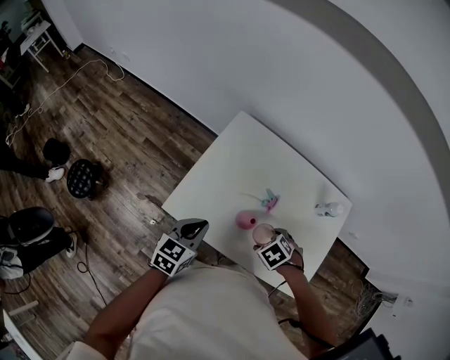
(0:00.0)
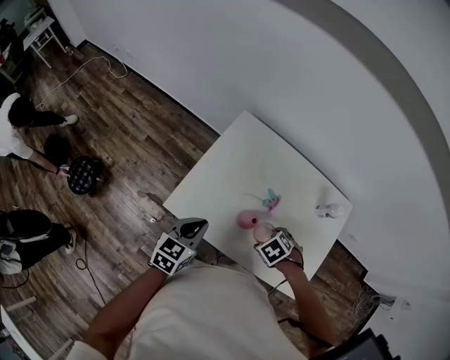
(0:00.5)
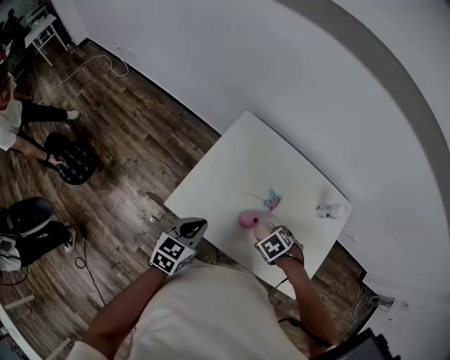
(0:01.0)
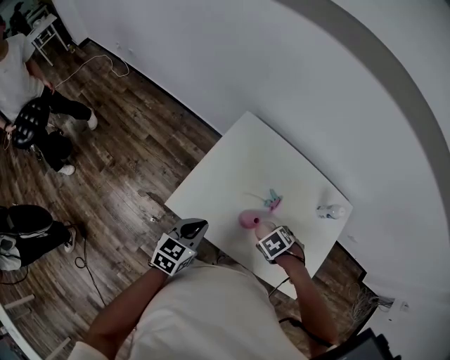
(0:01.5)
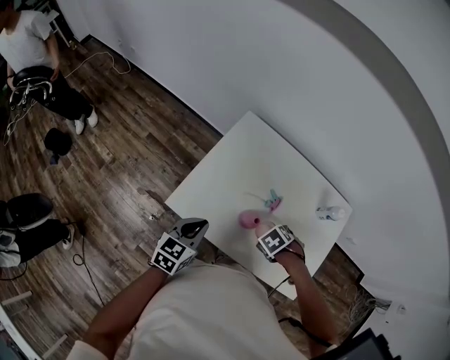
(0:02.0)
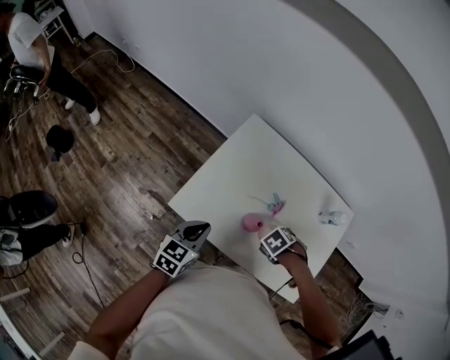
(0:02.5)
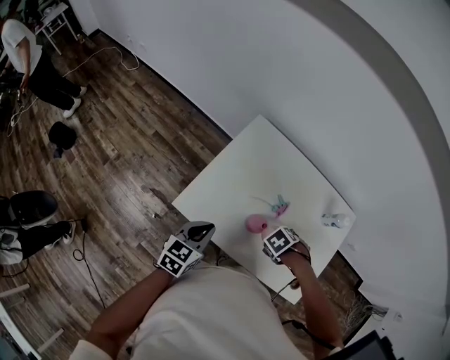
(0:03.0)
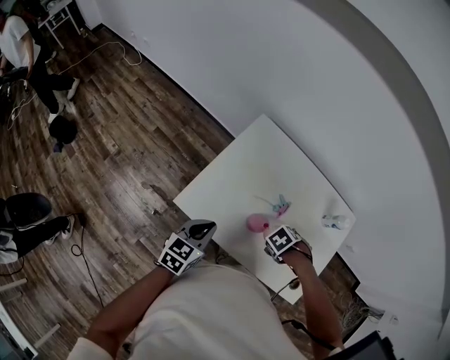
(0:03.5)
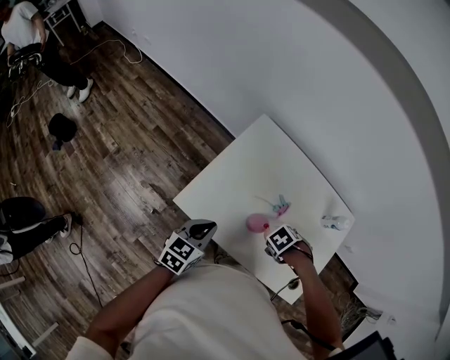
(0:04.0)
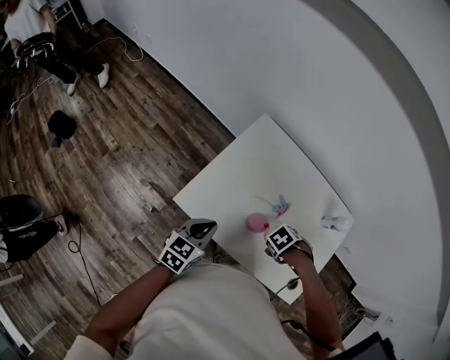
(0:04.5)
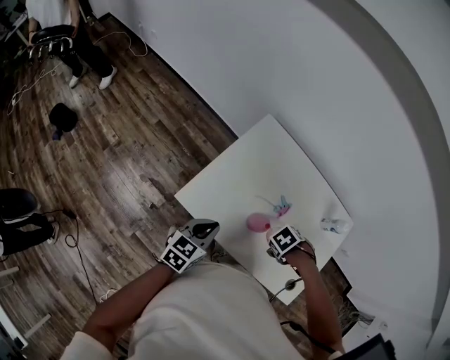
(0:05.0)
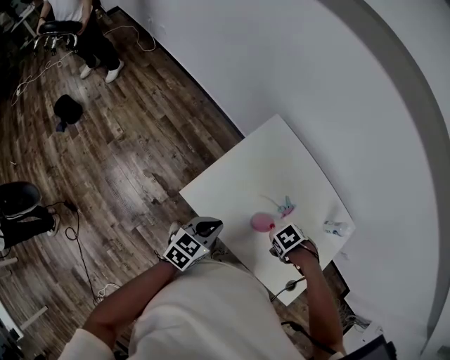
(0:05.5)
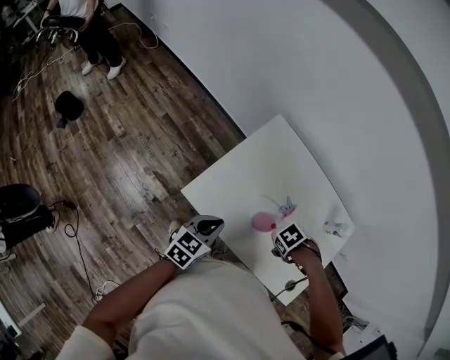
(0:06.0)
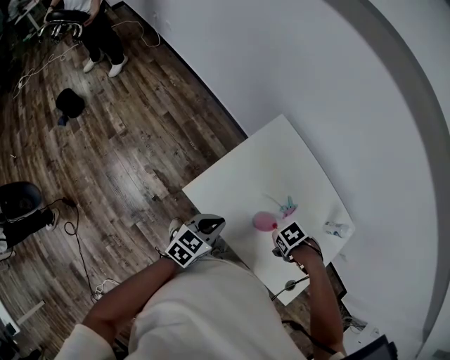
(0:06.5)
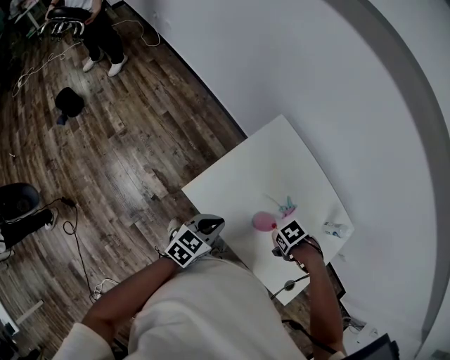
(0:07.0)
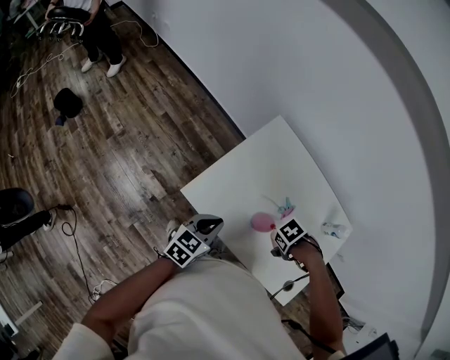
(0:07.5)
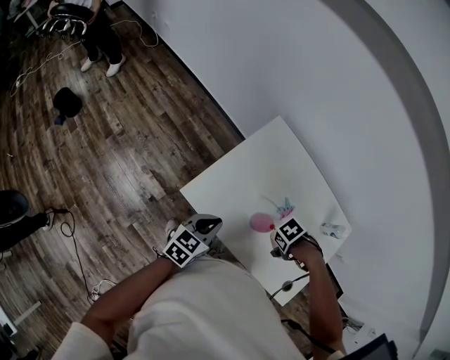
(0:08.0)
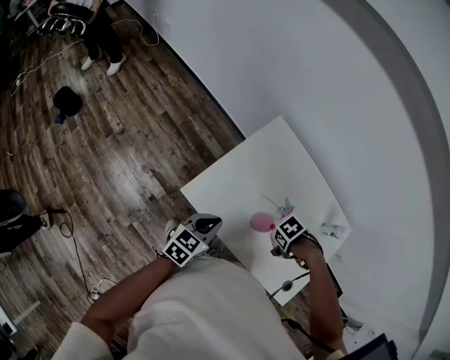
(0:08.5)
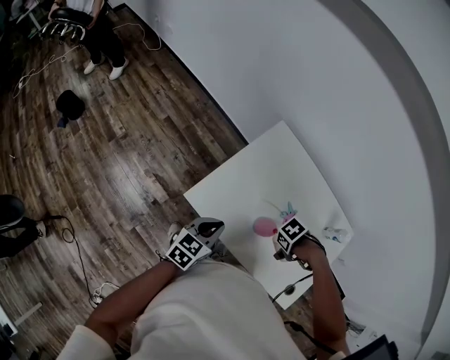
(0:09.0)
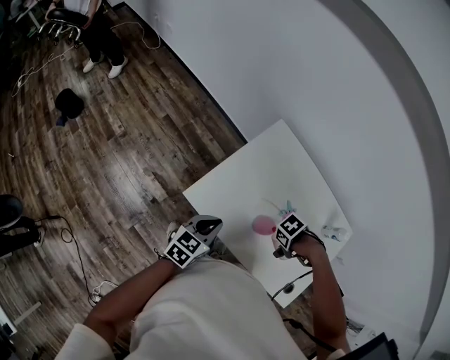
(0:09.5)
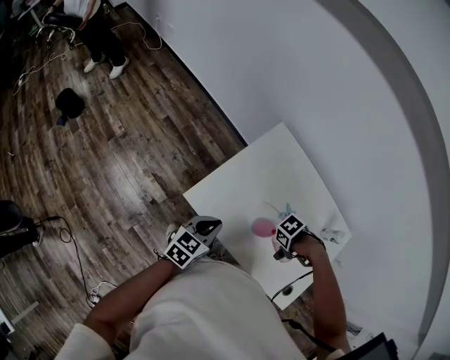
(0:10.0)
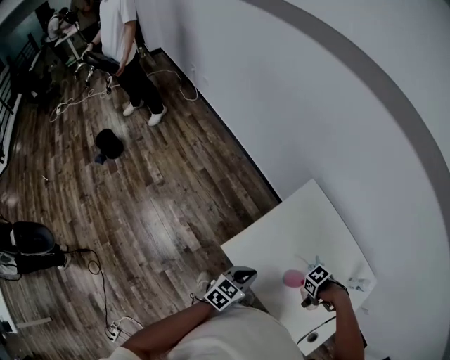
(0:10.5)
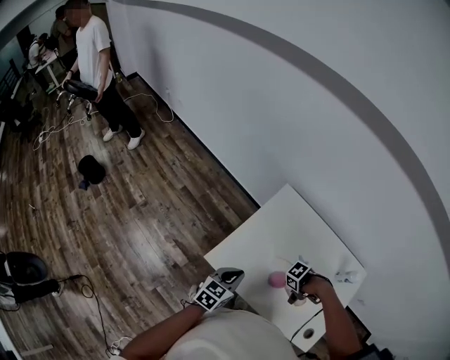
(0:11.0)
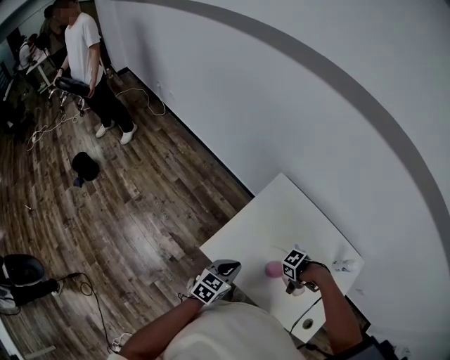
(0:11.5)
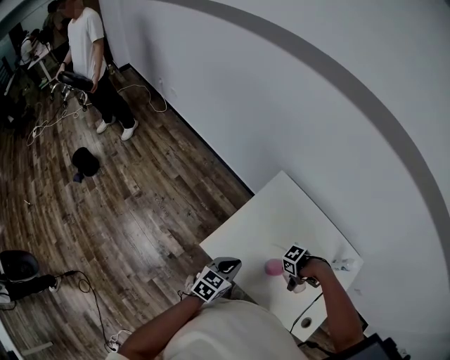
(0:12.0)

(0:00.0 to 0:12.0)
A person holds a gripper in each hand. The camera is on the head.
0:00.0 - 0:02.0: The grippers move only a little.
0:02.0 - 0:06.0: The grippers move only a little.
0:06.0 - 0:10.0: The grippers stay close to where they were, moving slightly.
0:10.0 - 0:12.0: There are only small adjustments of the grippers.

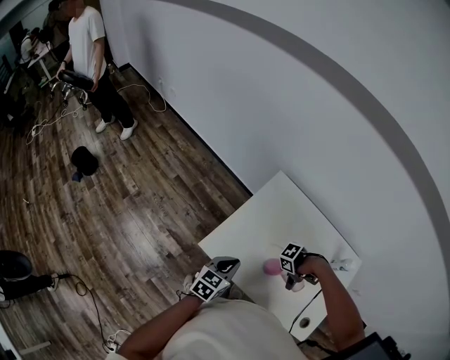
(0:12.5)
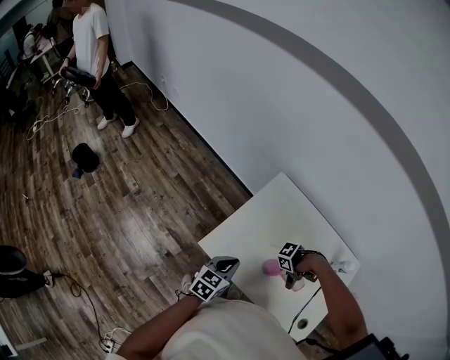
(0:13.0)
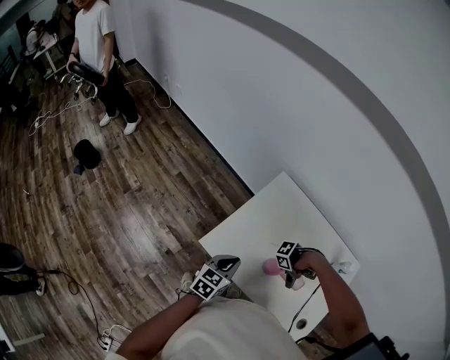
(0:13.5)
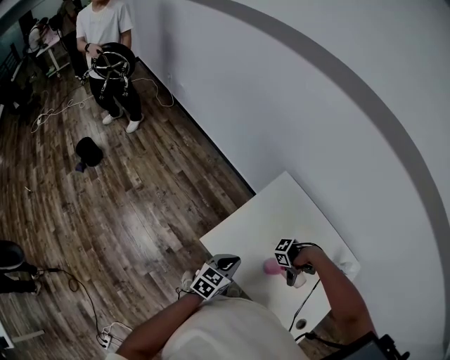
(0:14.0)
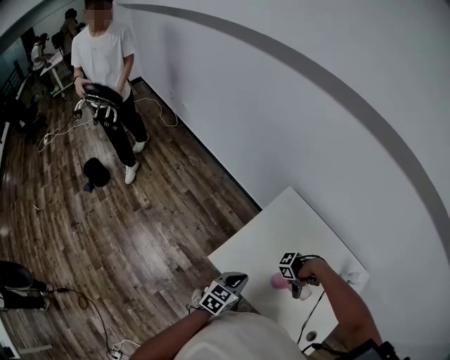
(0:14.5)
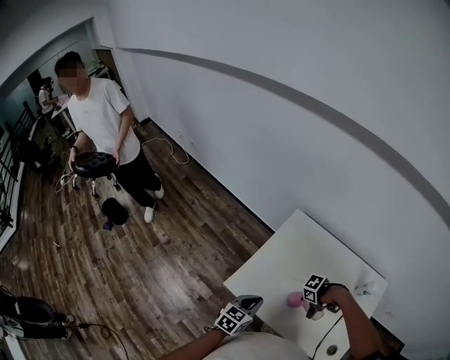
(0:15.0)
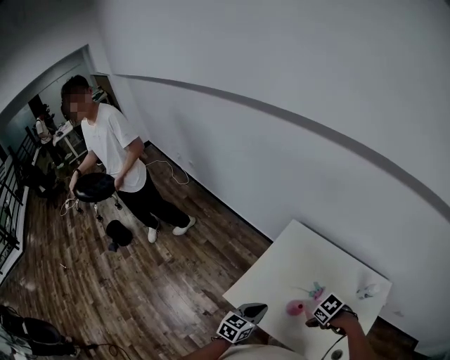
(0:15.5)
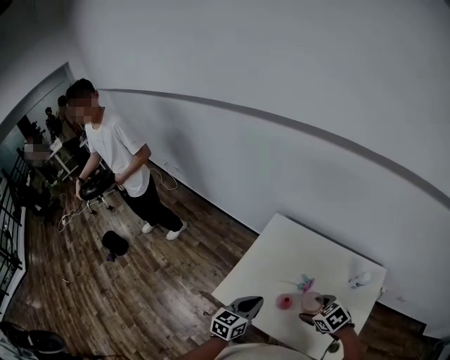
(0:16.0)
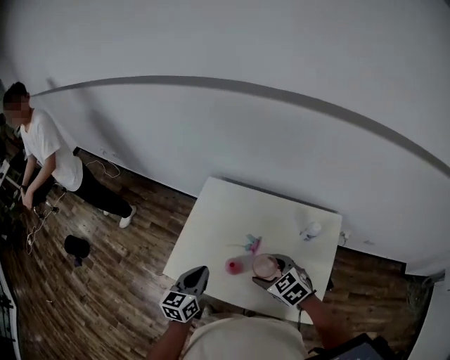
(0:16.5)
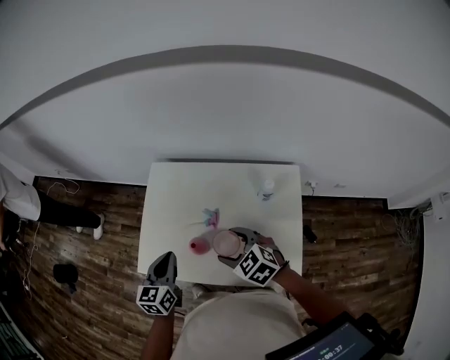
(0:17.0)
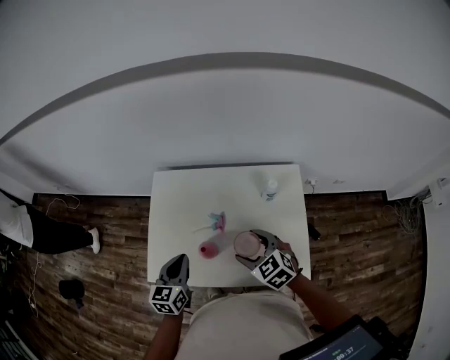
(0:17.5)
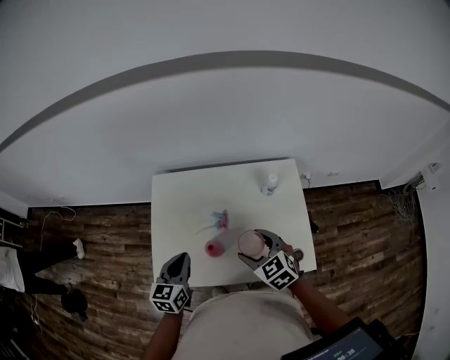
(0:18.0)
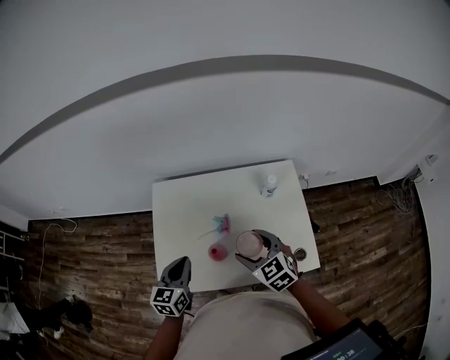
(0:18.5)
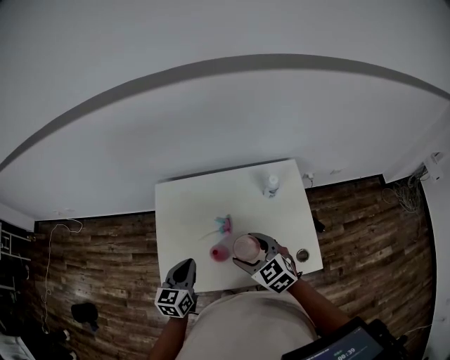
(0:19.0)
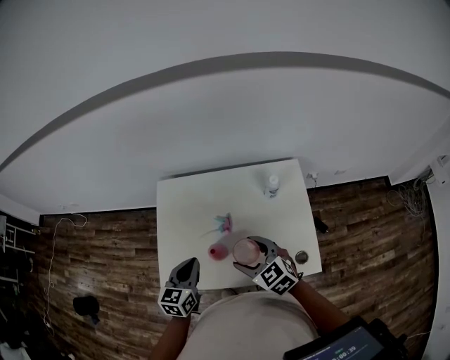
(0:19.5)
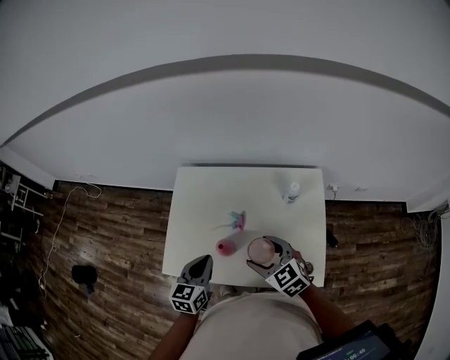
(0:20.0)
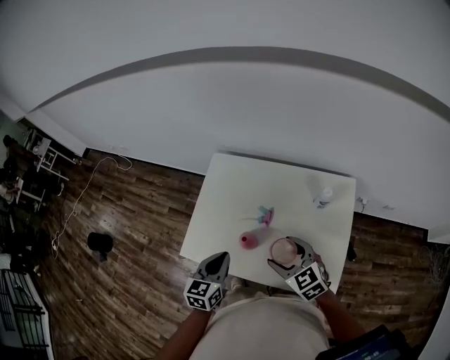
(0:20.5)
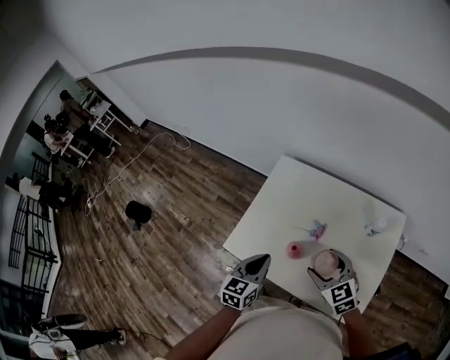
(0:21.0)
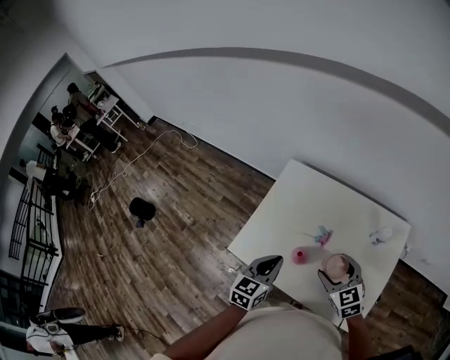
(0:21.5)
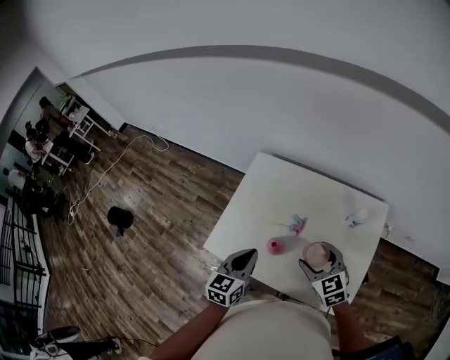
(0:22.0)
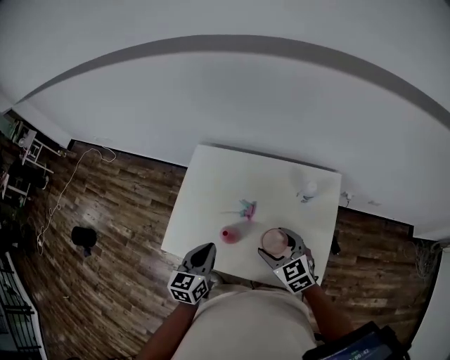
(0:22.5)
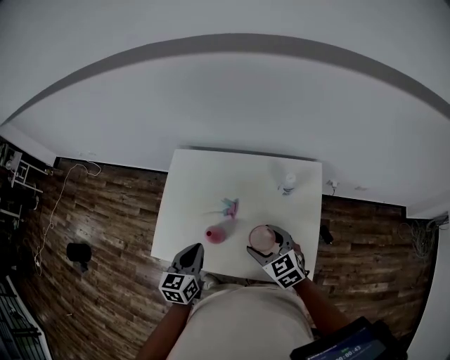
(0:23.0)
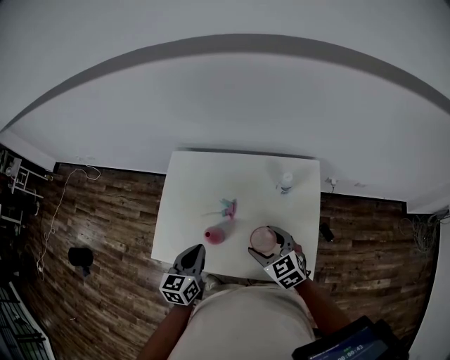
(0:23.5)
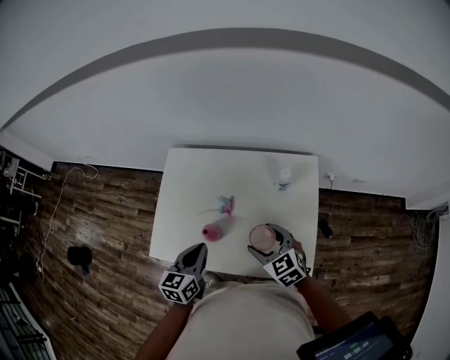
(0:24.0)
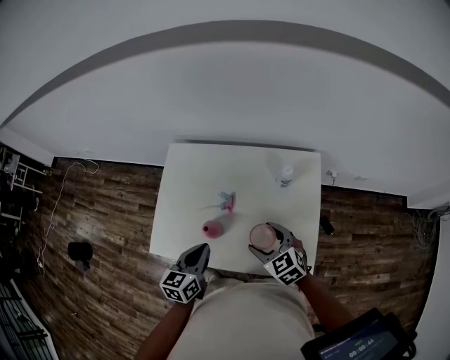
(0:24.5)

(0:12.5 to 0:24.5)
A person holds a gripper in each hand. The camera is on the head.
0:12.5 - 0:14.5: The grippers make only small movements.
0:14.5 - 0:16.5: The right gripper goes approximately 10 cm upward, and changes its angle by about 100 degrees, while the left gripper shifts by approximately 15 cm.
0:16.5 - 0:18.5: The right gripper turns by about 30 degrees. Meanwhile the left gripper turns by some 20 degrees.
0:18.5 - 0:20.5: The right gripper rotates about 20 degrees. Meanwhile the left gripper moves backward, approximately 5 cm.
0:20.5 - 0:22.5: The grippers make only small movements.
0:22.5 - 0:24.5: The right gripper ends up roughly 5 cm from where it was, while the left gripper ends up approximately 5 cm from where it was.

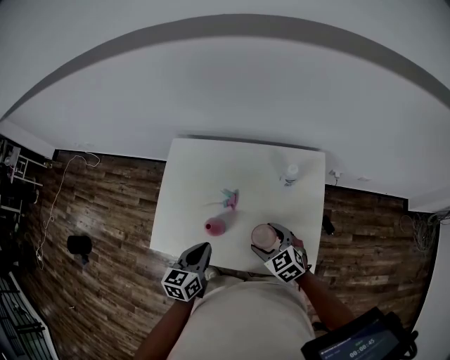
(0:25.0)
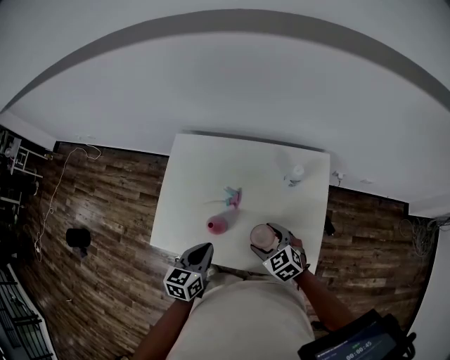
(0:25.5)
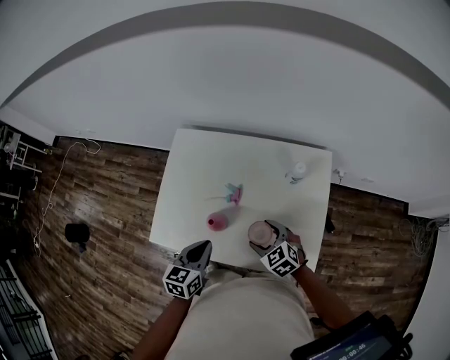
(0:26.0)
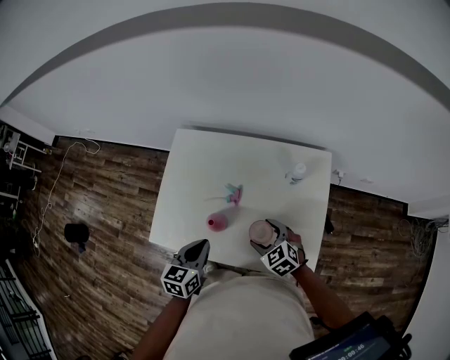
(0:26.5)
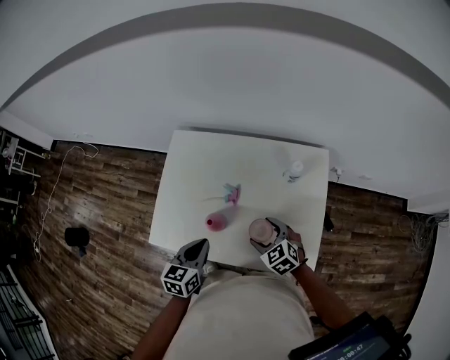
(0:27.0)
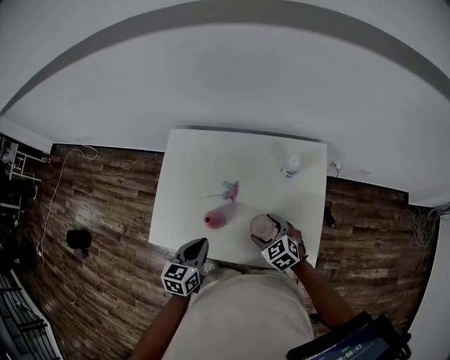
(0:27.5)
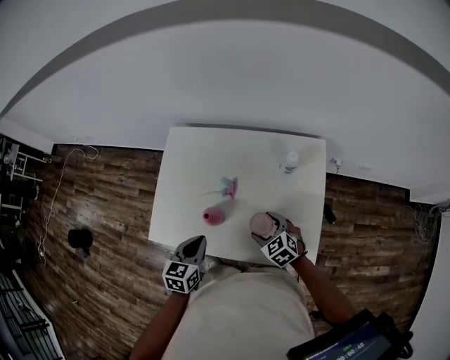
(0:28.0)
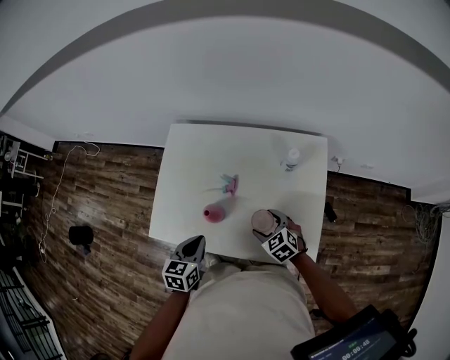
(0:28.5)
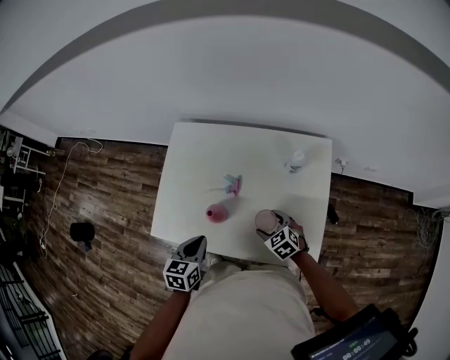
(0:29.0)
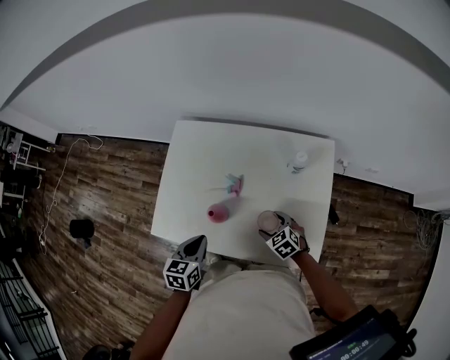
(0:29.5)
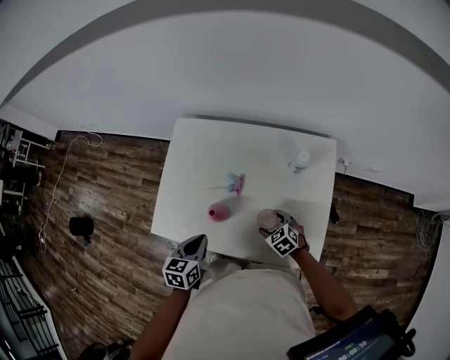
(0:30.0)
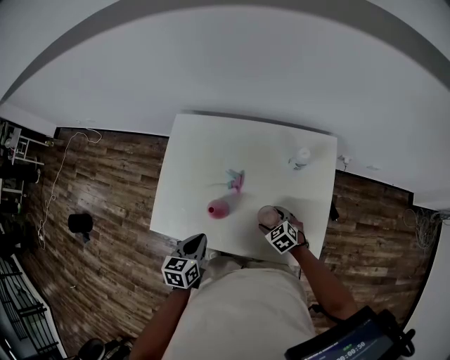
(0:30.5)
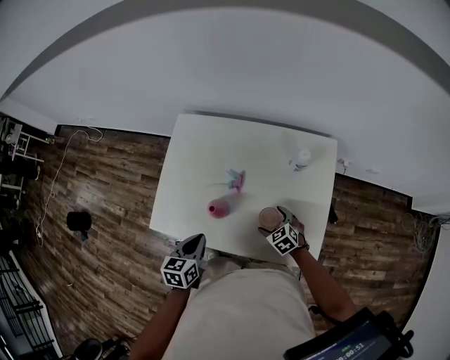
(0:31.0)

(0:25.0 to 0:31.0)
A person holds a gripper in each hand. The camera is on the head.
0:25.0 - 0:27.0: There are only small adjustments of the grippers.
0:27.0 - 0:29.0: The right gripper travels downward by approximately 10 cm.
0:29.0 - 0:31.0: The grippers move only a little.
